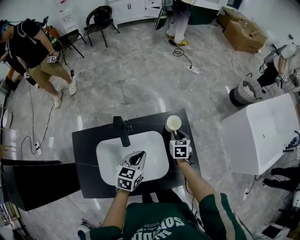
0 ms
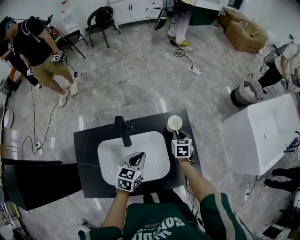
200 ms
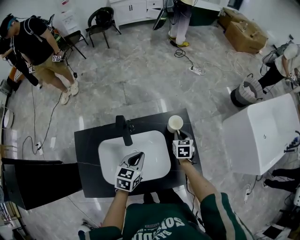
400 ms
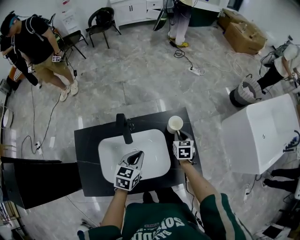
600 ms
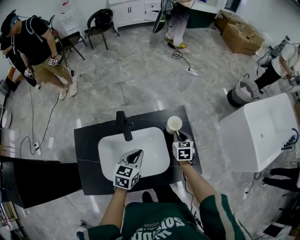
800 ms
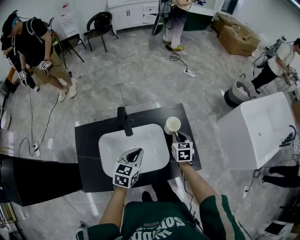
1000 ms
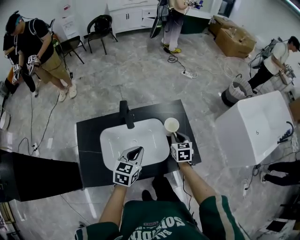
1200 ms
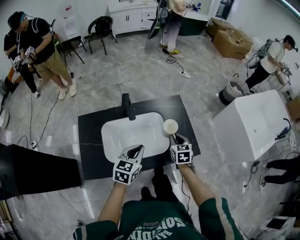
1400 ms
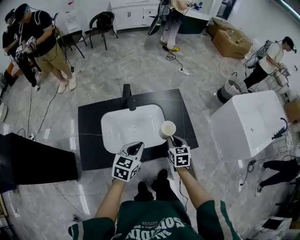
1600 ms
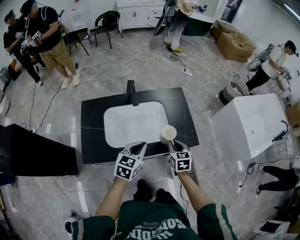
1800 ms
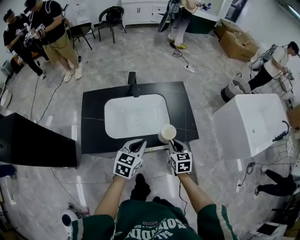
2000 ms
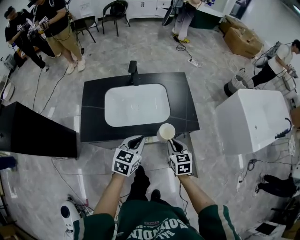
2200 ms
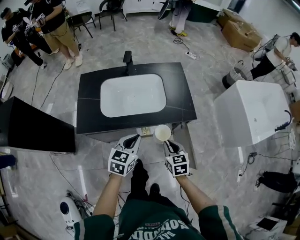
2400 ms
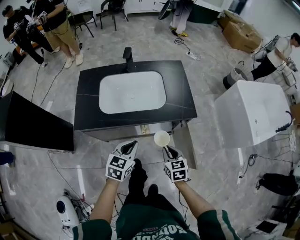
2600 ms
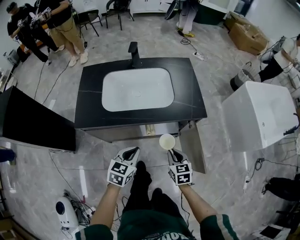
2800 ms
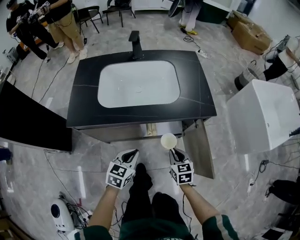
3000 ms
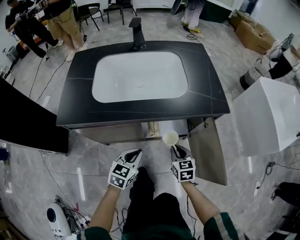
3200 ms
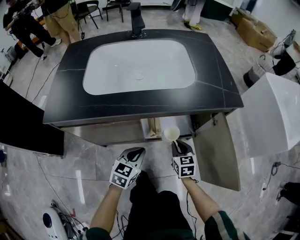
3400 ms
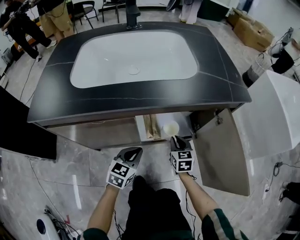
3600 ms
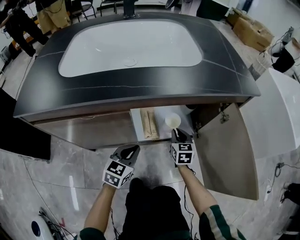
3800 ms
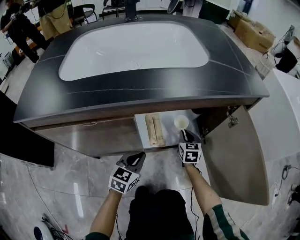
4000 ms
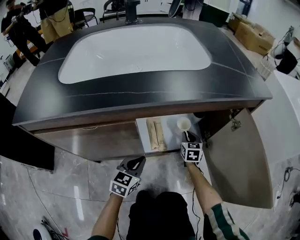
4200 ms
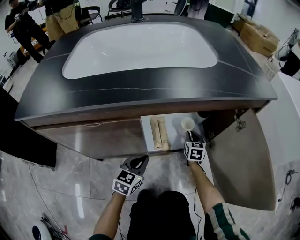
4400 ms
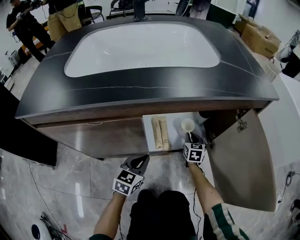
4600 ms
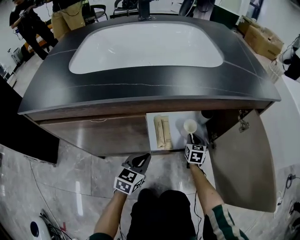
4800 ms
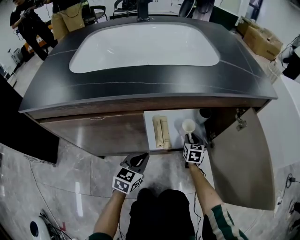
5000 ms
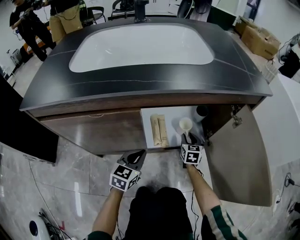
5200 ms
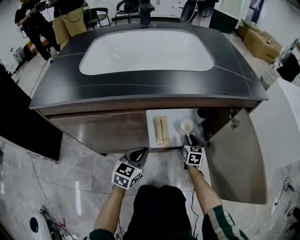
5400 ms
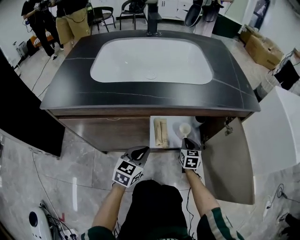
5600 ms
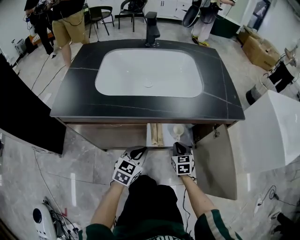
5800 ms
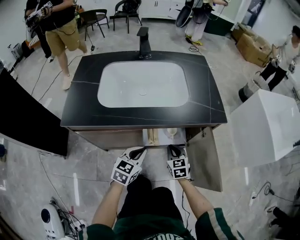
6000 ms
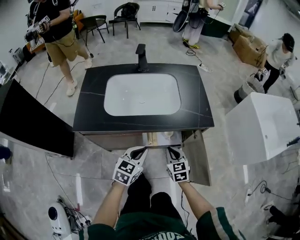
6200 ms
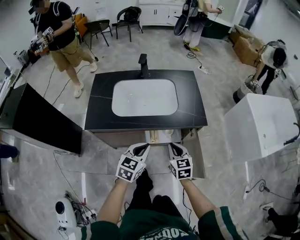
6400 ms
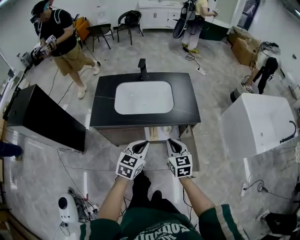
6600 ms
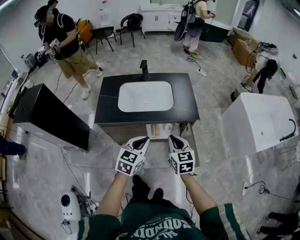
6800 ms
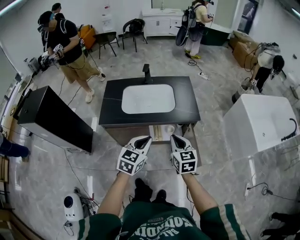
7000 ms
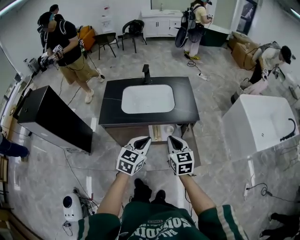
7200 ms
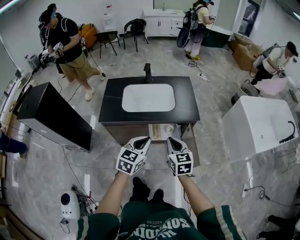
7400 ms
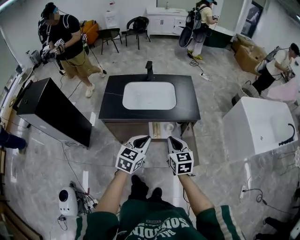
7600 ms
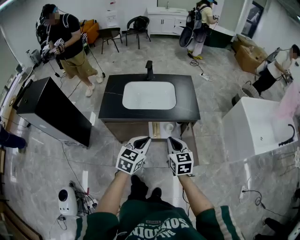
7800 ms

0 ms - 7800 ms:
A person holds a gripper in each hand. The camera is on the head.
0 ms - 1600 ms: The grippers both shift backward by some 25 cm.
1600 ms - 3200 ms: The grippers both shift downward and backward by approximately 40 cm.
3200 ms - 4600 ms: The right gripper travels downward and forward by roughly 35 cm, while the left gripper shifts approximately 25 cm downward.
4600 ms - 6200 ms: The right gripper heads upward and backward, covering roughly 50 cm, and swivels approximately 20 degrees; the left gripper heads upward, covering some 40 cm.
6200 ms - 7800 ms: Both grippers move upward and backward, some 35 cm.

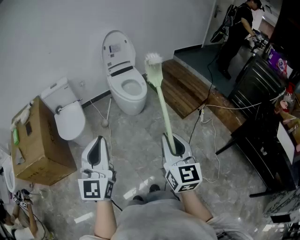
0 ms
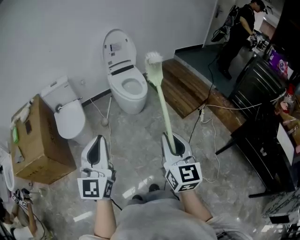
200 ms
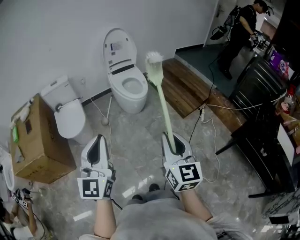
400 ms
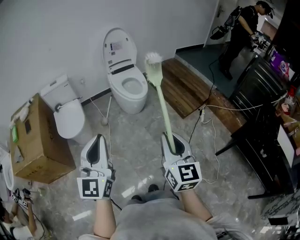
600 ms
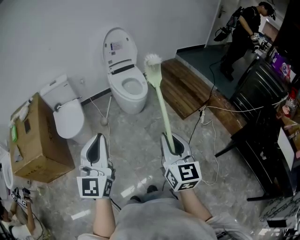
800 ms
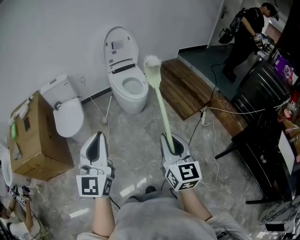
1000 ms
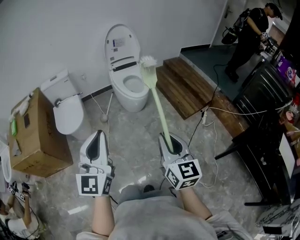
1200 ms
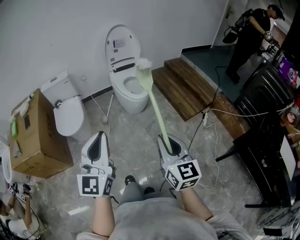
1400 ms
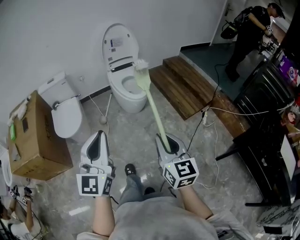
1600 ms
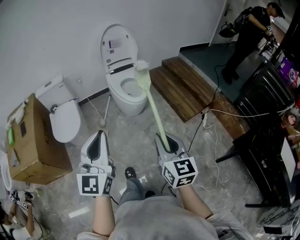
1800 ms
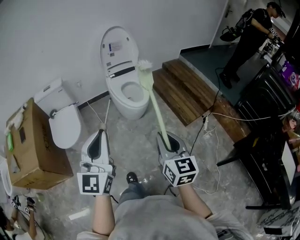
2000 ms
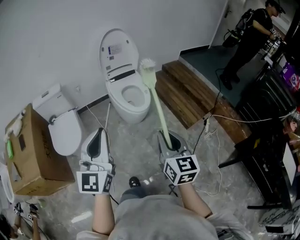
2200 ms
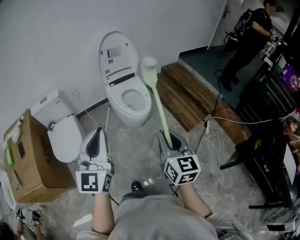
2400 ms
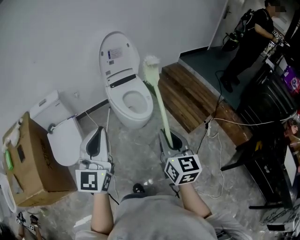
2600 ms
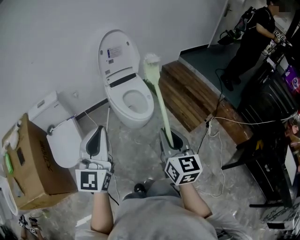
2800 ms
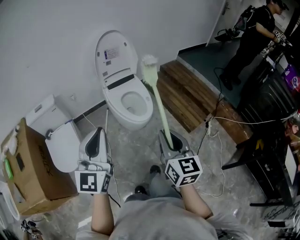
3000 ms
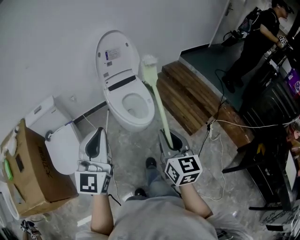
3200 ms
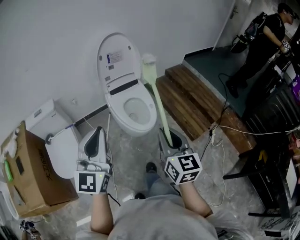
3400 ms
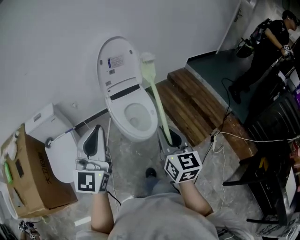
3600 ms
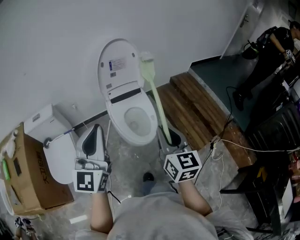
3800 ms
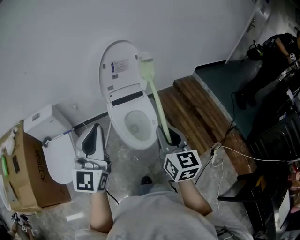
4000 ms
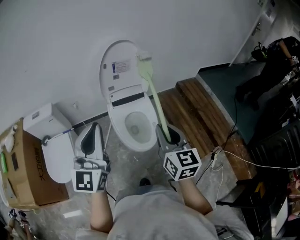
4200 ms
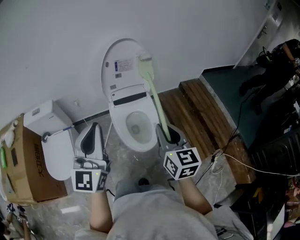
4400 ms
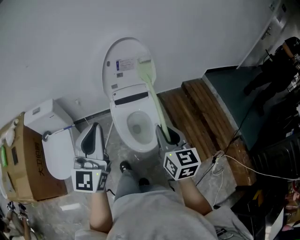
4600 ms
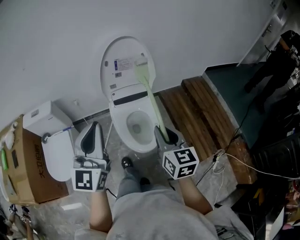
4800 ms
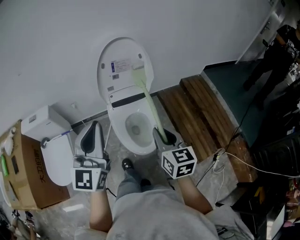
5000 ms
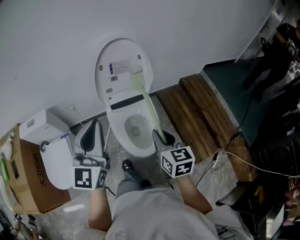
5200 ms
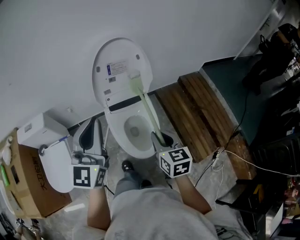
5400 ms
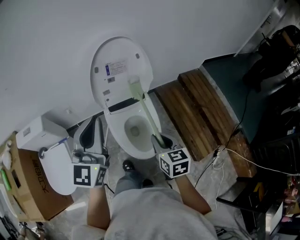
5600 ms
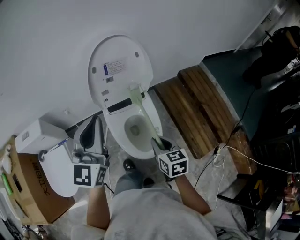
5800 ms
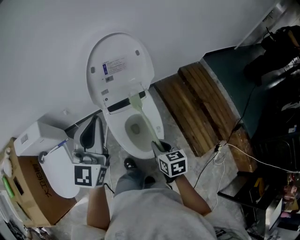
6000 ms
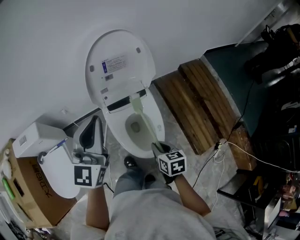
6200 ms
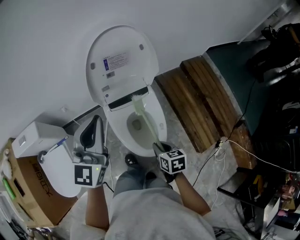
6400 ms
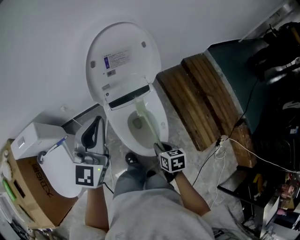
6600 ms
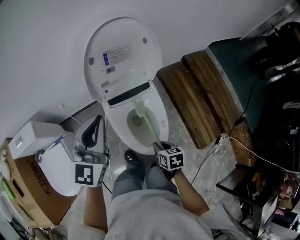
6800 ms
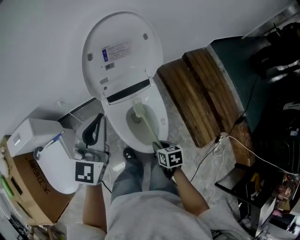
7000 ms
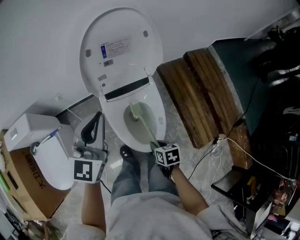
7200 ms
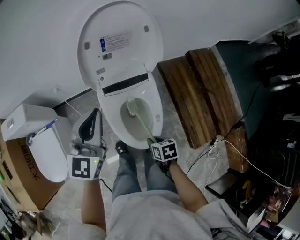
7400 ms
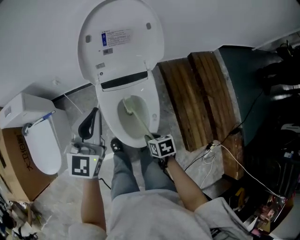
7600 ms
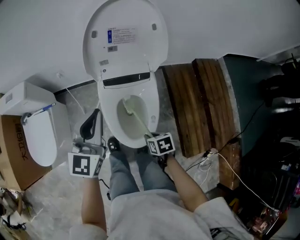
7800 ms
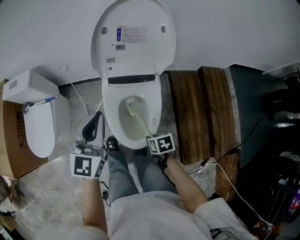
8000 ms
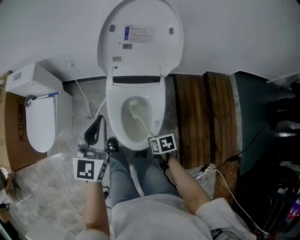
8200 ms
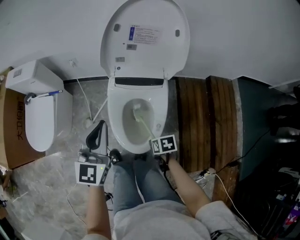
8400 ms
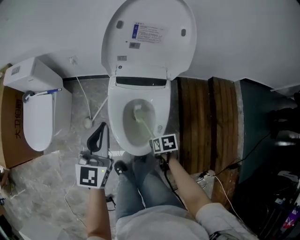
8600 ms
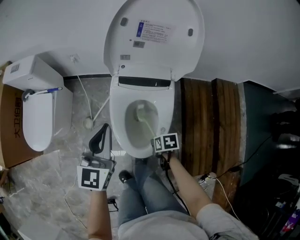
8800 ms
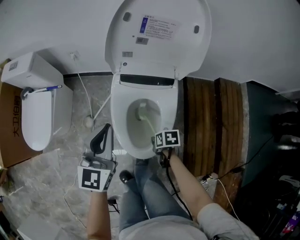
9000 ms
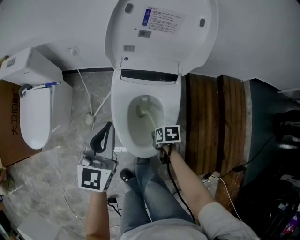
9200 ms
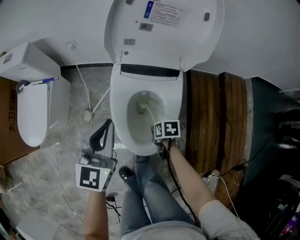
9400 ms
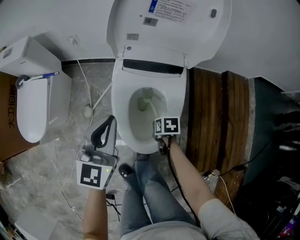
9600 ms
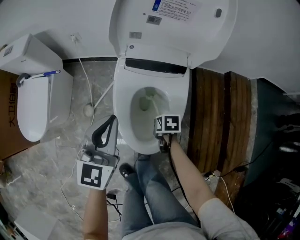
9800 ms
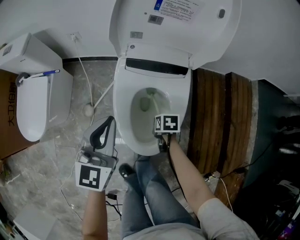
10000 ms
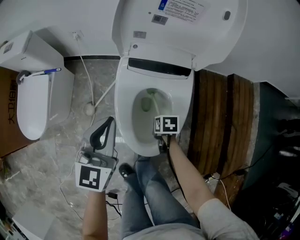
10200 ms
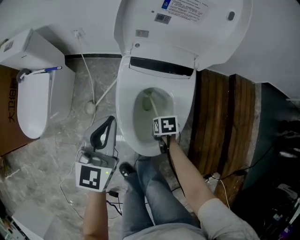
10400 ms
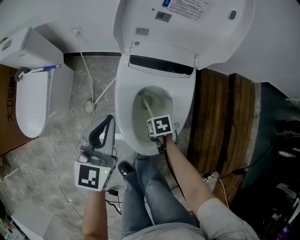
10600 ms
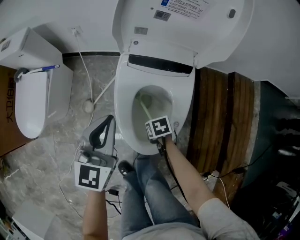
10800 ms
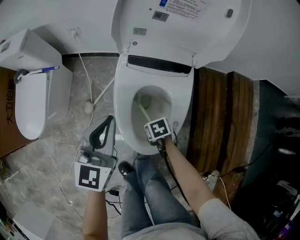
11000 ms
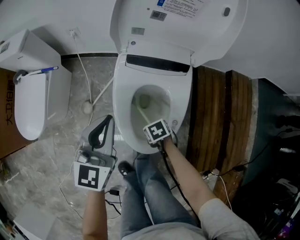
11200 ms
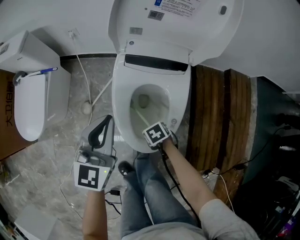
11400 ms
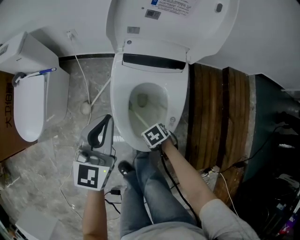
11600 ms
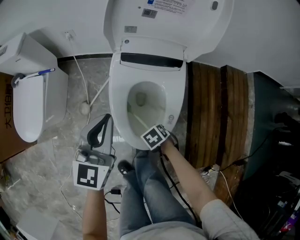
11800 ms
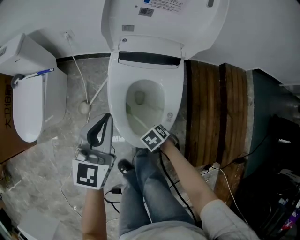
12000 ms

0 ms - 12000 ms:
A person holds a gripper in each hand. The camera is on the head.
0 ms - 1600 ms: The left gripper moves some 10 cm.
1600 ms - 3000 ms: The left gripper ends up approximately 30 cm from where it was.
3000 ms - 4400 ms: The left gripper shifts by about 25 cm.
4400 ms - 6000 ms: The left gripper changes place by approximately 25 cm.
6000 ms - 7600 ms: The left gripper goes roughly 15 cm downward.
7600 ms - 9000 ms: The left gripper travels downward by roughly 10 cm.
9000 ms - 10400 ms: The left gripper is displaced downward by about 5 cm.

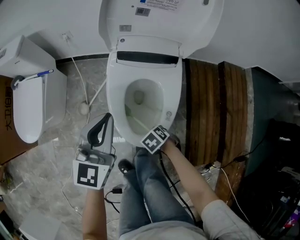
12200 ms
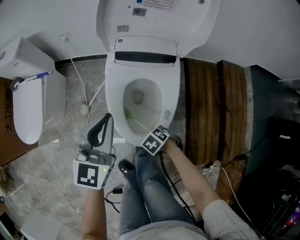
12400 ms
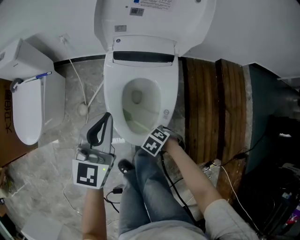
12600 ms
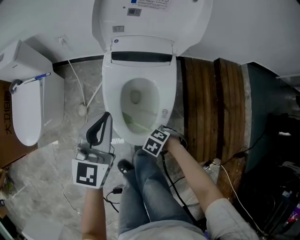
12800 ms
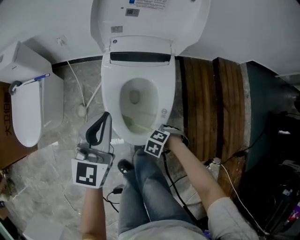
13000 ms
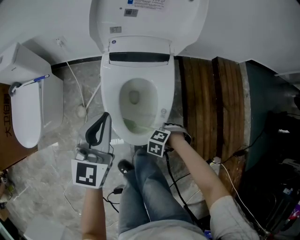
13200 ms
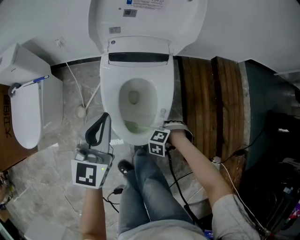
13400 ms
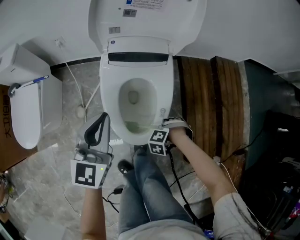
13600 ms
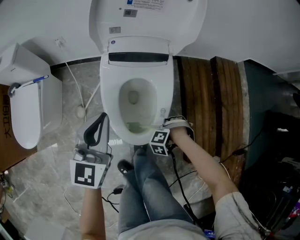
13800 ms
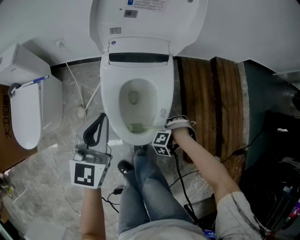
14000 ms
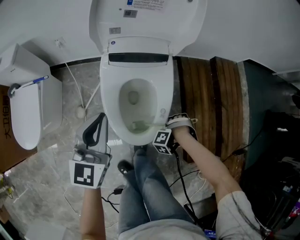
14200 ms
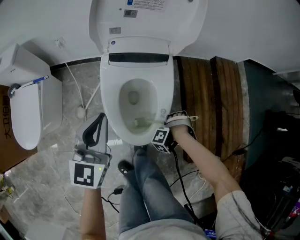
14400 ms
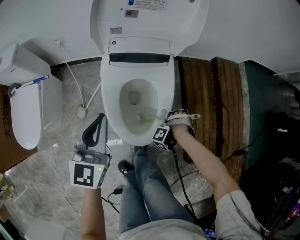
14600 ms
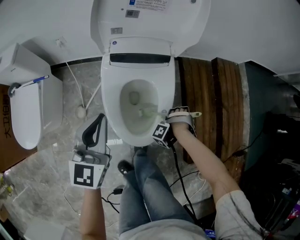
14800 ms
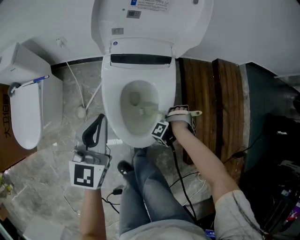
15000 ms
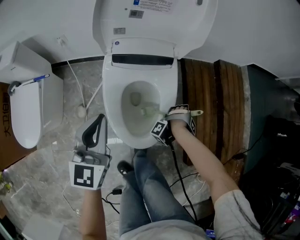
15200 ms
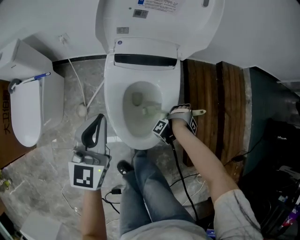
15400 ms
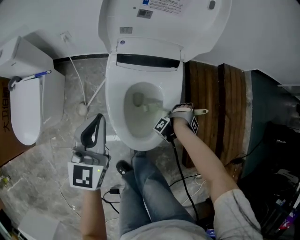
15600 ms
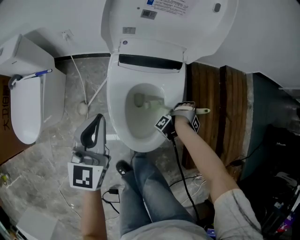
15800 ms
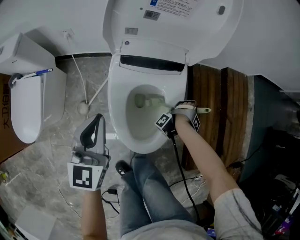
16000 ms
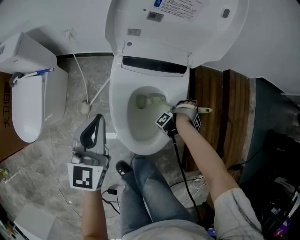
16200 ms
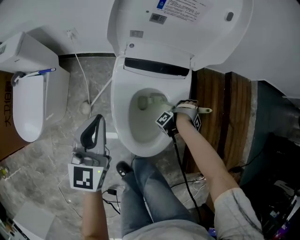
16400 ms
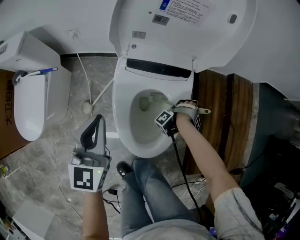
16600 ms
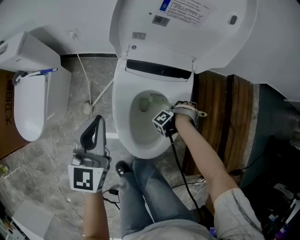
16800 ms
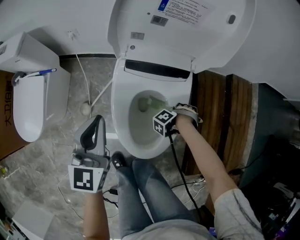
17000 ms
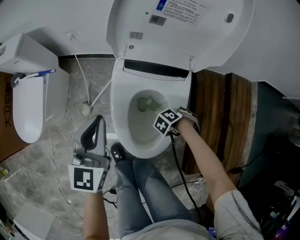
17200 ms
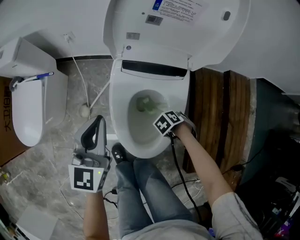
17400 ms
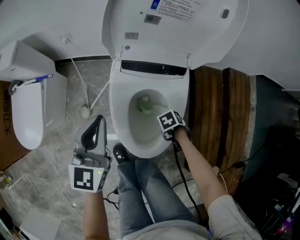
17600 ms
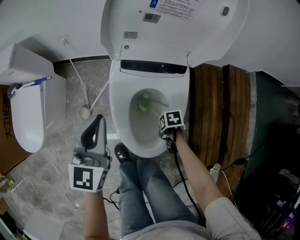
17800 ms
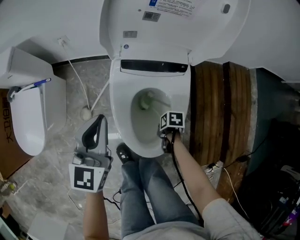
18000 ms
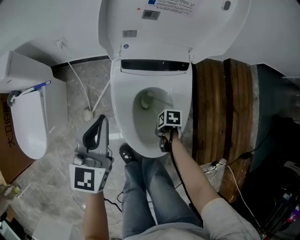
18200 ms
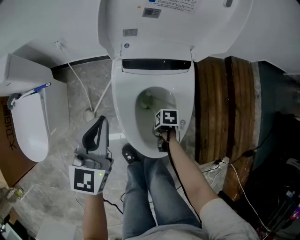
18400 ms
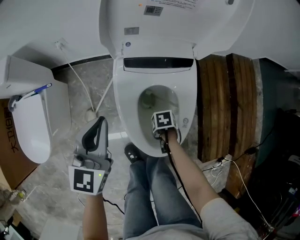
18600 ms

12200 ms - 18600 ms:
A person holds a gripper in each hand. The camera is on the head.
15400 ms - 17000 ms: The left gripper ends up roughly 5 cm from where it was.
